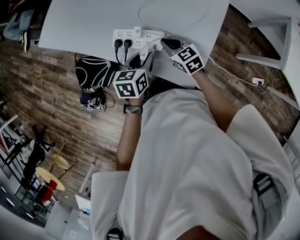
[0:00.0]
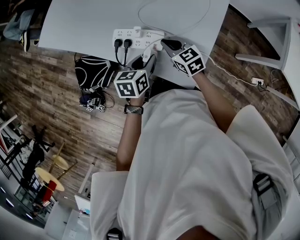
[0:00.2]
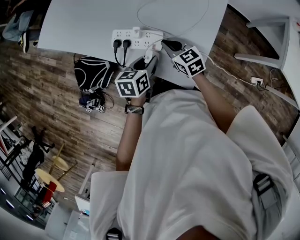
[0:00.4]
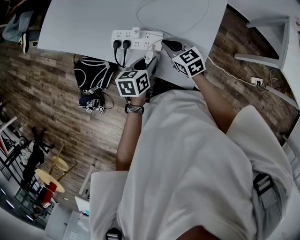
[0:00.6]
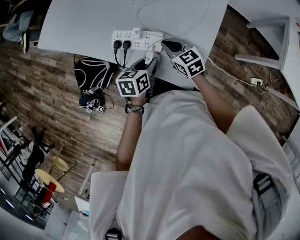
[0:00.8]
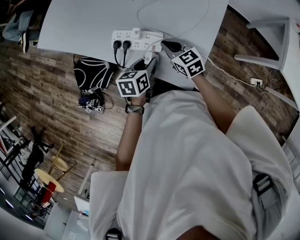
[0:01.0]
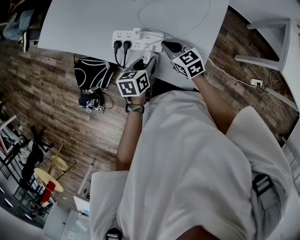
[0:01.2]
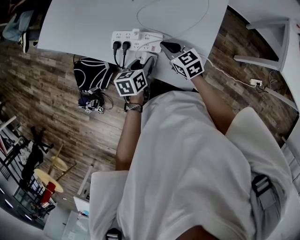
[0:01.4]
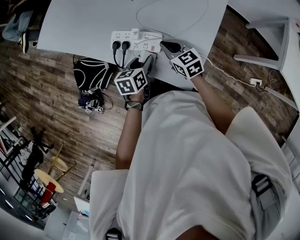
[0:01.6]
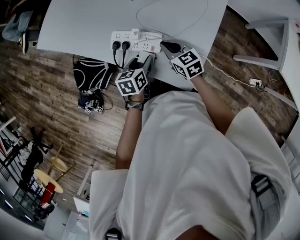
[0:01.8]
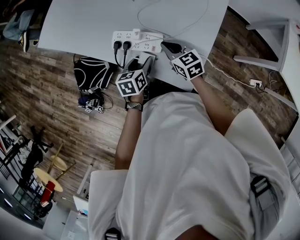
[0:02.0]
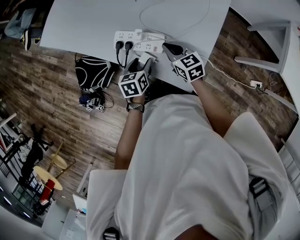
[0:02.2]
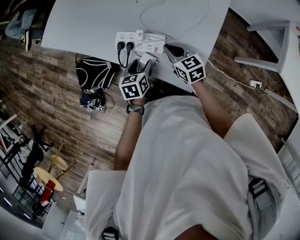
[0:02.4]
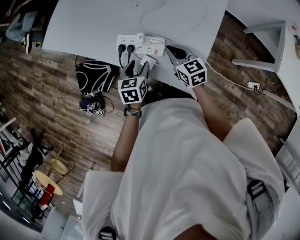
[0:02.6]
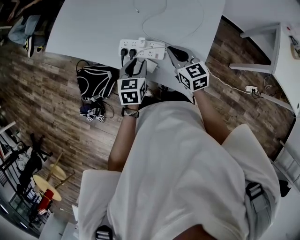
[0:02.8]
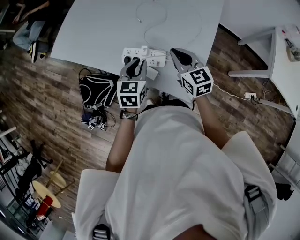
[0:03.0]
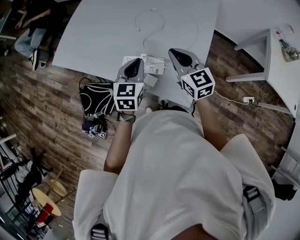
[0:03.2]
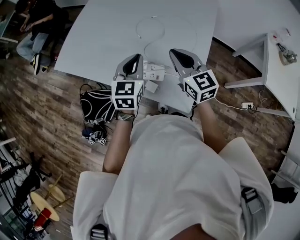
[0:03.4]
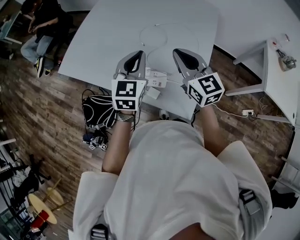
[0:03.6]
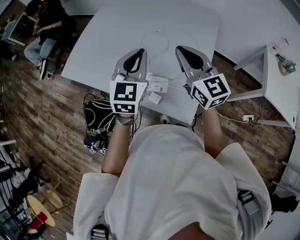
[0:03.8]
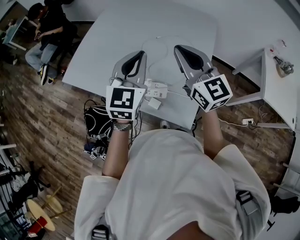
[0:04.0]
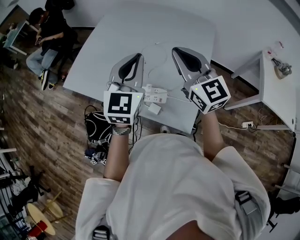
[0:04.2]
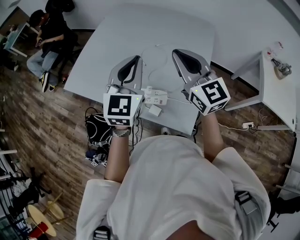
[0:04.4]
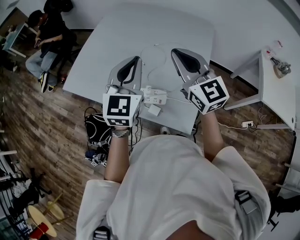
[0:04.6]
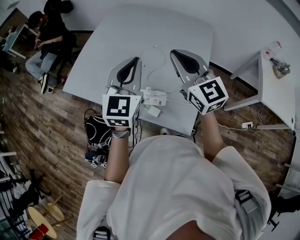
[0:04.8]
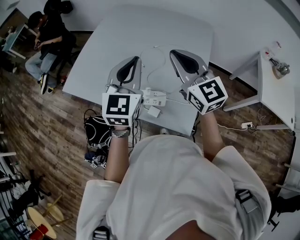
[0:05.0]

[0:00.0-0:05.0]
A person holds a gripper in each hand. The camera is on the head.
0:00.0 to 0:01.6: The left gripper is displaced downward by approximately 5 cm.
0:01.6 to 0:03.4: Both grippers move upward, approximately 25 cm. The left gripper changes its angle by about 40 degrees, and closes, while the right gripper swivels approximately 30 degrees.
0:03.4 to 0:05.0: Both grippers move upward, some 15 cm.

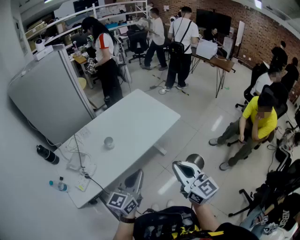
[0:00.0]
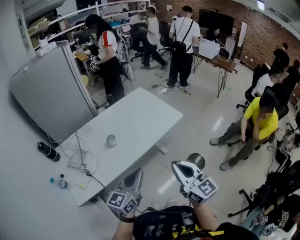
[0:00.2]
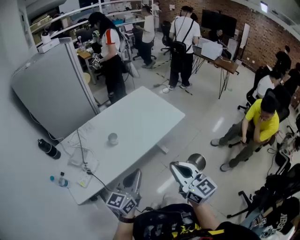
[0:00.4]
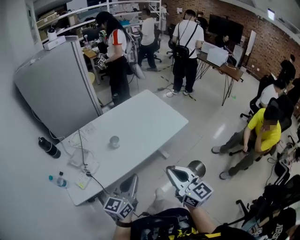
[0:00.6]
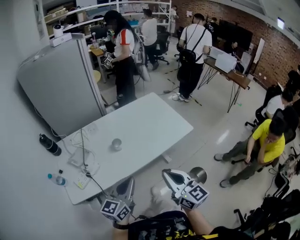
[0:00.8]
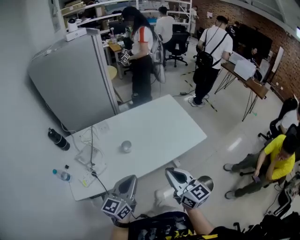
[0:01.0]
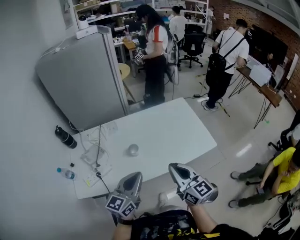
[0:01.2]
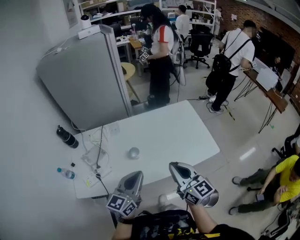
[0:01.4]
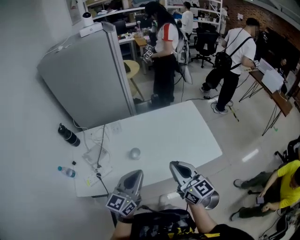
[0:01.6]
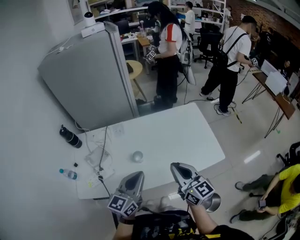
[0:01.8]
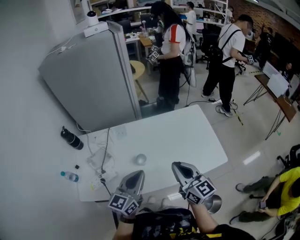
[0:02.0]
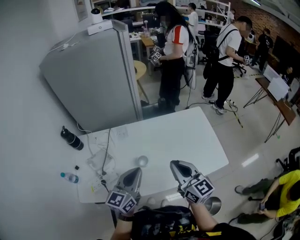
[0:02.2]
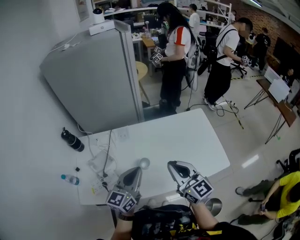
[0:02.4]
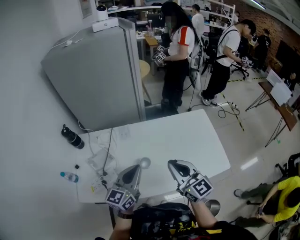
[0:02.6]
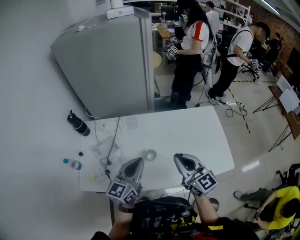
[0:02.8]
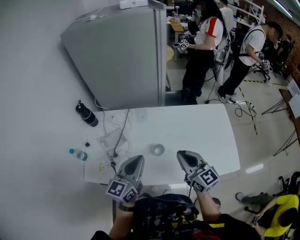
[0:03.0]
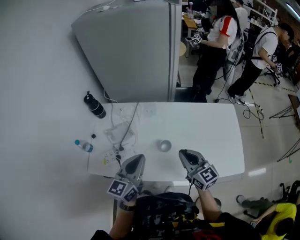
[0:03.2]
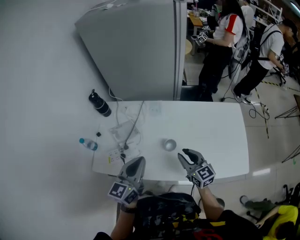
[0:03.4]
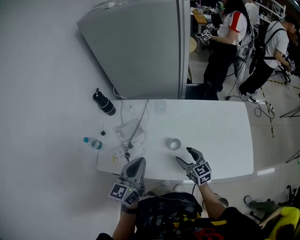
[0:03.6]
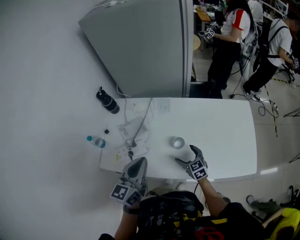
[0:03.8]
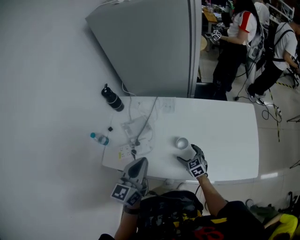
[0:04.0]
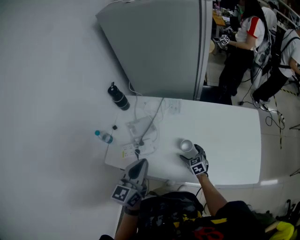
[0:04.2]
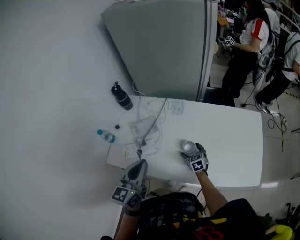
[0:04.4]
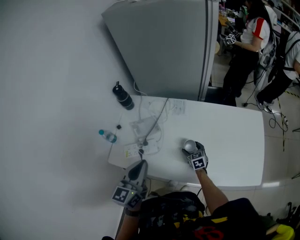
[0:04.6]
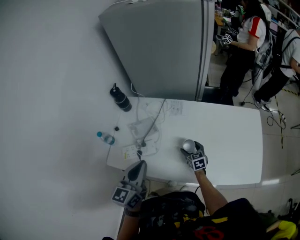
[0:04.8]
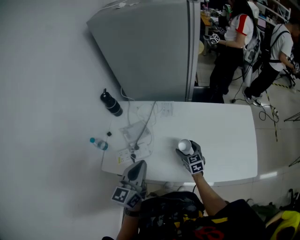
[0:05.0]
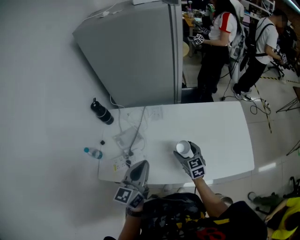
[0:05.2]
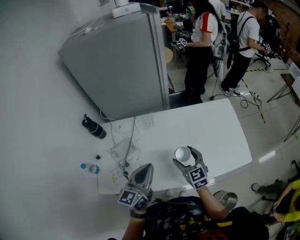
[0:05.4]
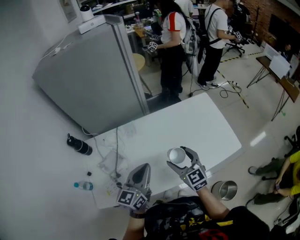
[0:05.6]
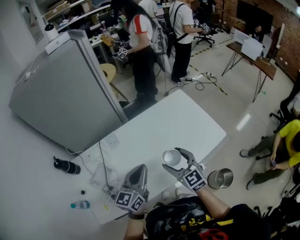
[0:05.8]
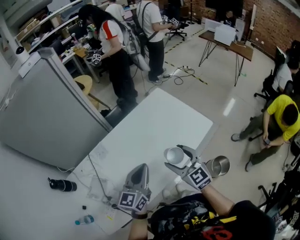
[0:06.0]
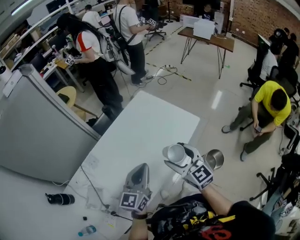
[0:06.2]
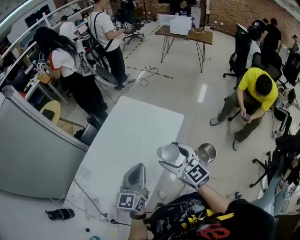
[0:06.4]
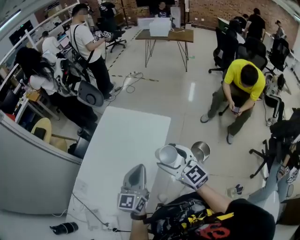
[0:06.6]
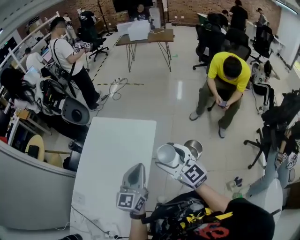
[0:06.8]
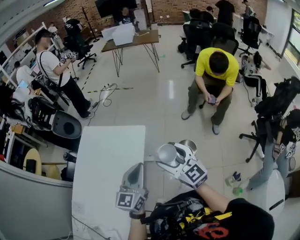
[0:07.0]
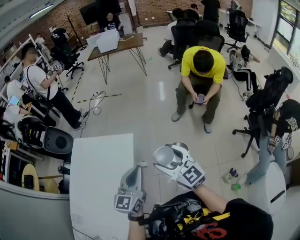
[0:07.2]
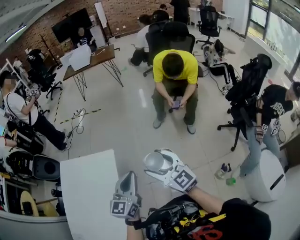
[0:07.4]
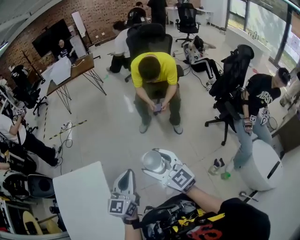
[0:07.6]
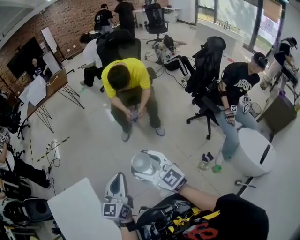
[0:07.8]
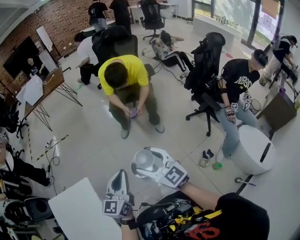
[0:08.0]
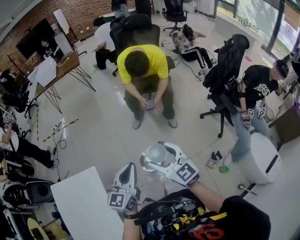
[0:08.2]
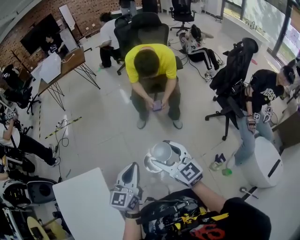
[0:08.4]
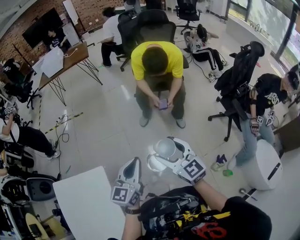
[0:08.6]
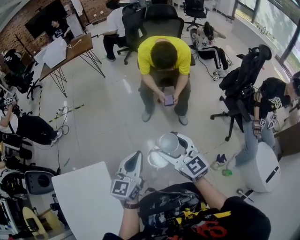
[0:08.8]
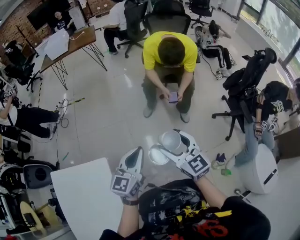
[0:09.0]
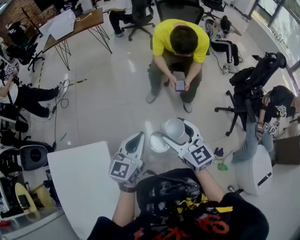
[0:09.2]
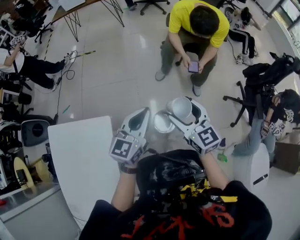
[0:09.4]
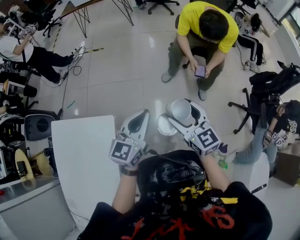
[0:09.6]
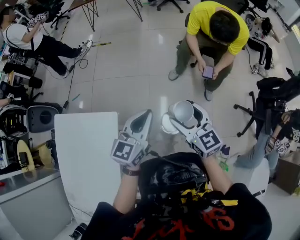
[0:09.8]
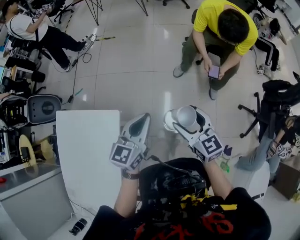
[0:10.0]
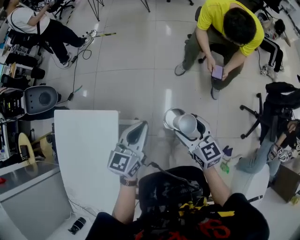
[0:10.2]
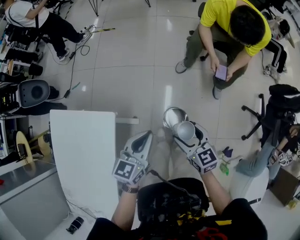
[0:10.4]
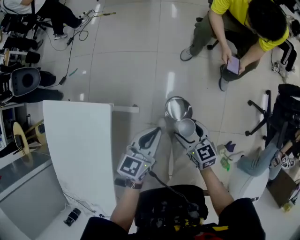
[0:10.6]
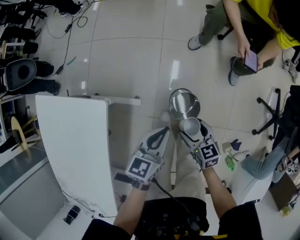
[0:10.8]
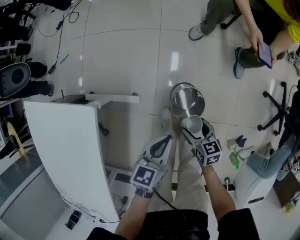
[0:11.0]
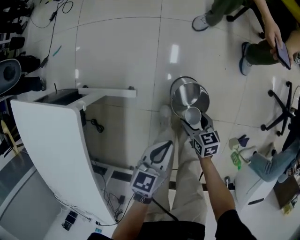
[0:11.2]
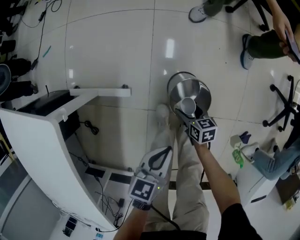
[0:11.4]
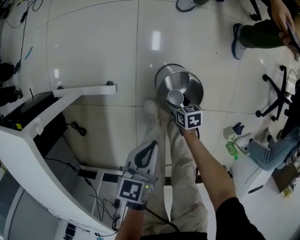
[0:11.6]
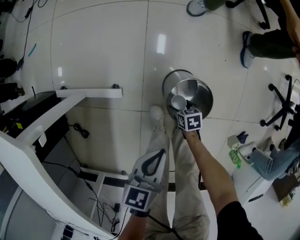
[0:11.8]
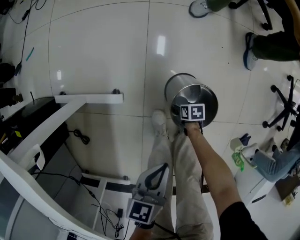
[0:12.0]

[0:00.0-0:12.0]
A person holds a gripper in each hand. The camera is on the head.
0:00.0 to 0:01.6: The left gripper shifts by some 20 cm, and swivels about 30 degrees; the right gripper ends up some 30 cm from where it was, and turns by about 30 degrees.
0:01.6 to 0:03.0: The right gripper moves forward and to the left, some 15 cm, while the left gripper travels to the left and forward by approximately 15 cm.
0:03.0 to 0:04.4: The left gripper heads to the left, covering approximately 10 cm; the right gripper travels downward by some 35 cm, points its fingers about 40 degrees further downward, and opens up.
0:04.4 to 0:06.0: The right gripper heads upward, covering approximately 30 cm, and rotates some 40 degrees. Meanwhile the left gripper ends up some 25 cm from where it was, and changes its angle by approximately 50 degrees.
0:06.0 to 0:07.6: The two grippers travel together, roughly 50 cm. The right gripper changes its angle by approximately 60 degrees. The left gripper turns by approximately 60 degrees.
0:07.6 to 0:09.0: The two grippers go about 20 cm forward.
0:09.0 to 0:10.4: The right gripper is displaced downward by approximately 20 cm, and rotates about 30 degrees. The left gripper moves downward, some 10 cm, and rotates about 20 degrees.
0:10.4 to 0:12.0: The left gripper goes about 40 cm downward, and turns by some 20 degrees. Meanwhile the right gripper is displaced downward by approximately 70 cm, and points its fingers roughly 40 degrees further downward.

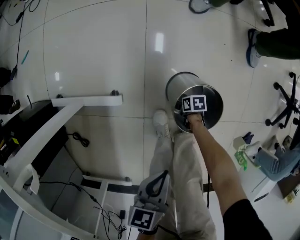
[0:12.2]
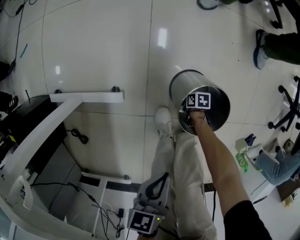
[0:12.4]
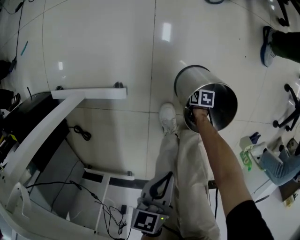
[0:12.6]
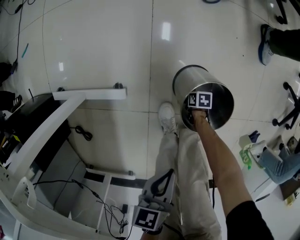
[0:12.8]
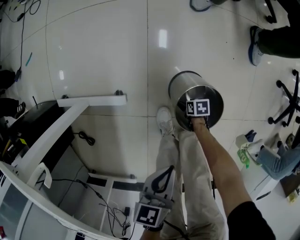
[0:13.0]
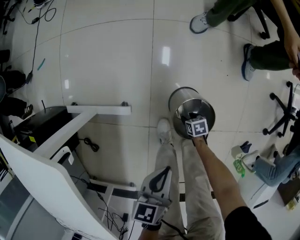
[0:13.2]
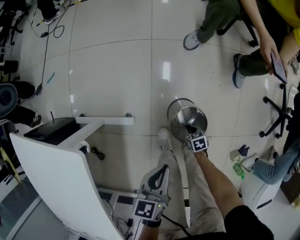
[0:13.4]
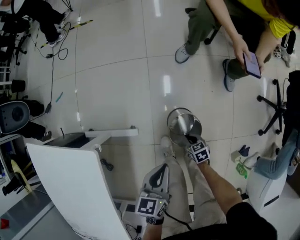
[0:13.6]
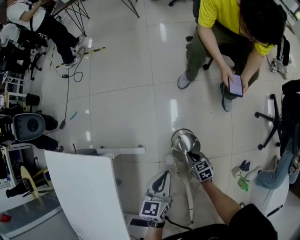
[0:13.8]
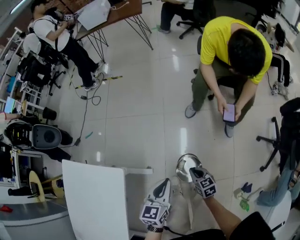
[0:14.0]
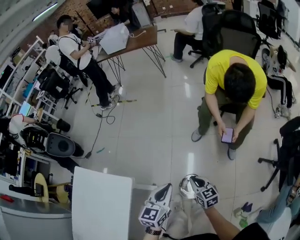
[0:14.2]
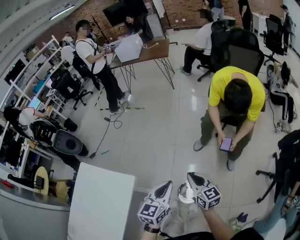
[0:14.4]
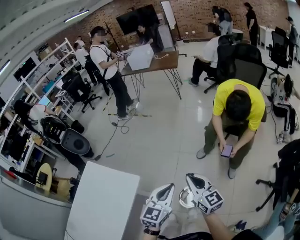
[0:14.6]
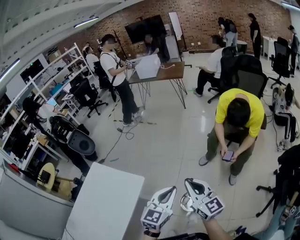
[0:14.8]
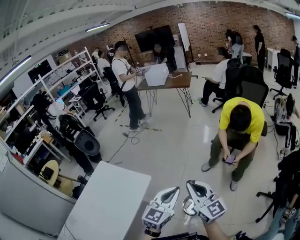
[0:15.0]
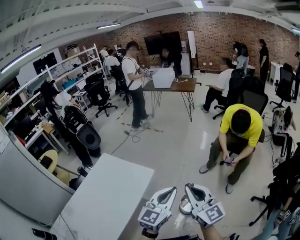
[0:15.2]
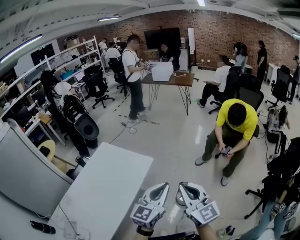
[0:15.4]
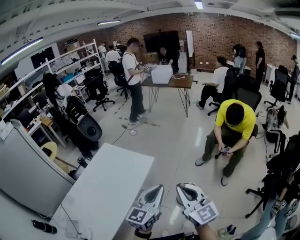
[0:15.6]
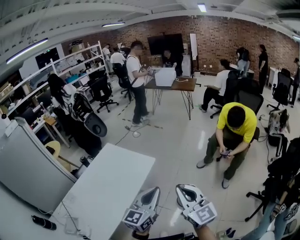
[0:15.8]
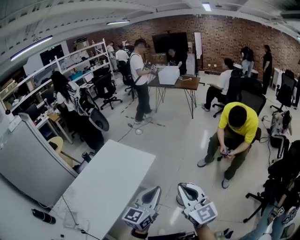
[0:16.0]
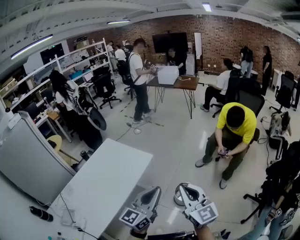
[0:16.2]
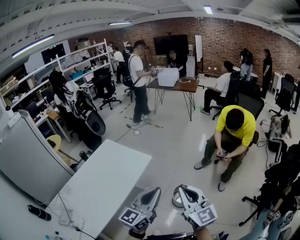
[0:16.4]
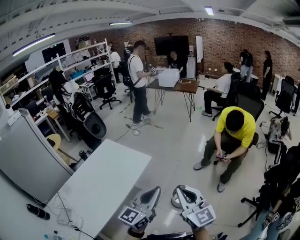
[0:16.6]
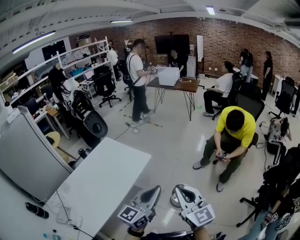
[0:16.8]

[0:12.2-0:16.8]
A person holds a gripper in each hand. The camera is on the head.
0:12.2 to 0:13.8: The right gripper heads upward, covering roughly 40 cm, changes its angle by some 50 degrees, and closes its fingers; the left gripper shifts about 25 cm upward, and changes its angle by about 20 degrees.
0:13.8 to 0:15.2: The right gripper is displaced upward by approximately 70 cm, and angles its fingers upward, by roughly 60 degrees. The left gripper shifts approximately 50 cm upward and backward, and points its fingers some 30 degrees further upward.
0:15.2 to 0:16.8: Both grippers travel together backward, about 15 cm.

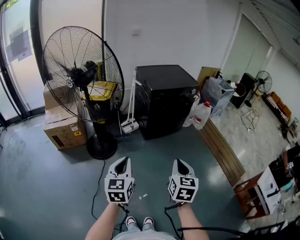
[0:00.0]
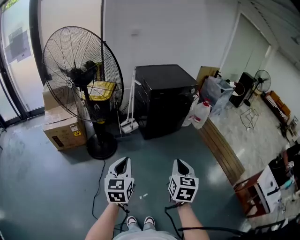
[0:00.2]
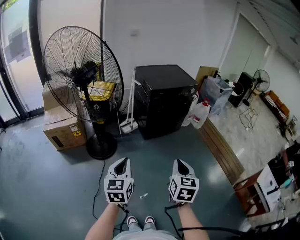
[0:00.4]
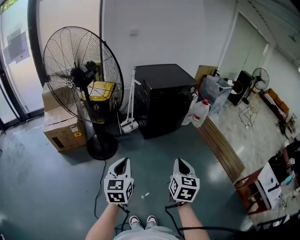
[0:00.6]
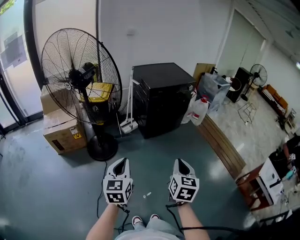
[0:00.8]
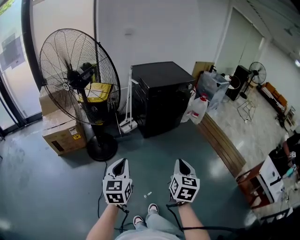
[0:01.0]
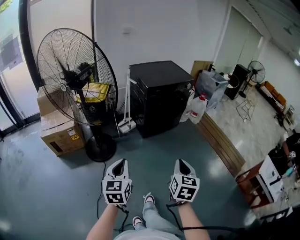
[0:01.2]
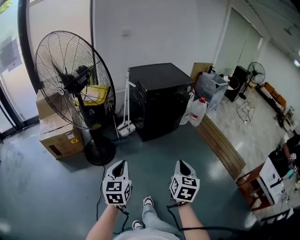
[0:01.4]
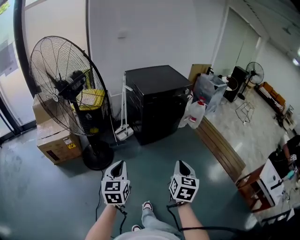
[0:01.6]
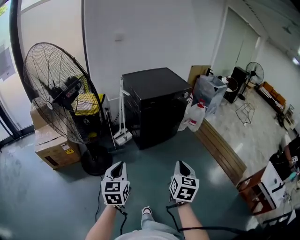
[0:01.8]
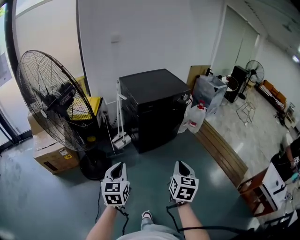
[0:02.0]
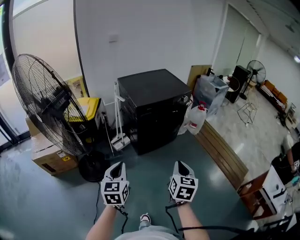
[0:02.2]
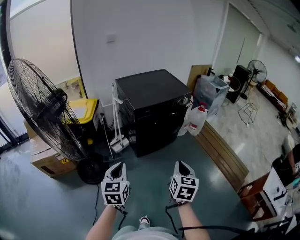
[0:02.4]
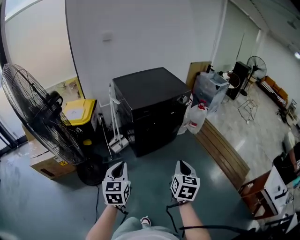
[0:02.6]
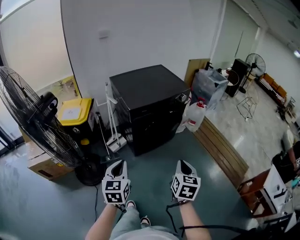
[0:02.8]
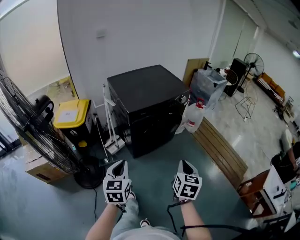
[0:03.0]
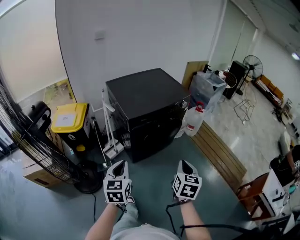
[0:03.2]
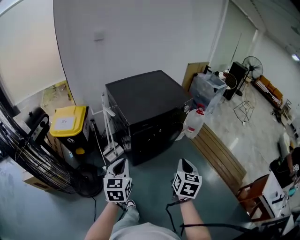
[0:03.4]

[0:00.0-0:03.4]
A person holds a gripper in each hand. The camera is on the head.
0:00.0 to 0:01.6: Both grippers travel together forward, some 5 cm.
0:01.6 to 0:03.4: Both grippers move forward, about 40 cm.
